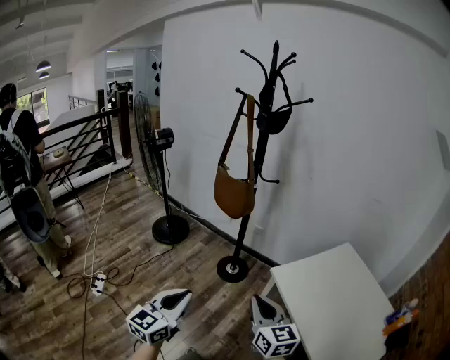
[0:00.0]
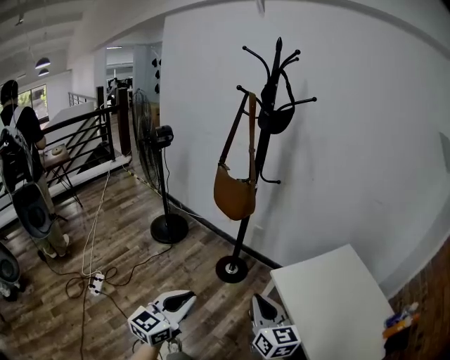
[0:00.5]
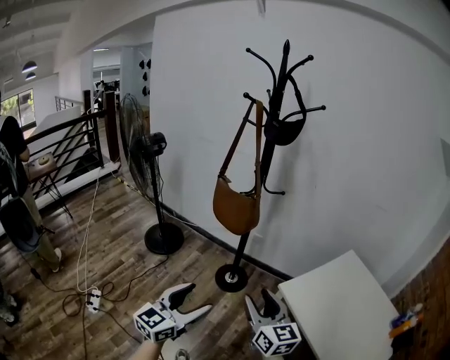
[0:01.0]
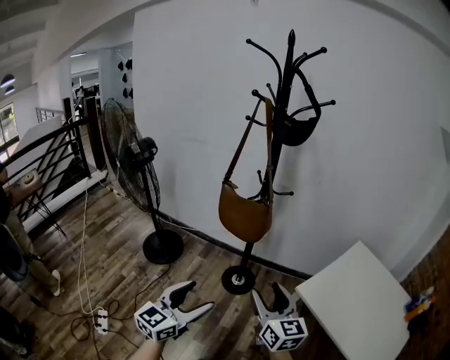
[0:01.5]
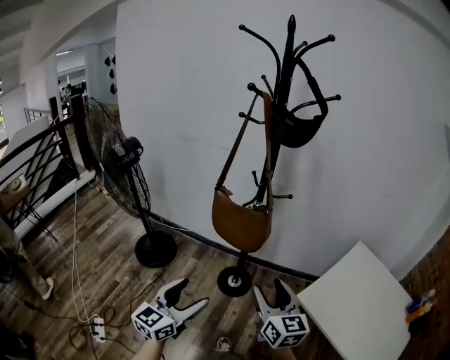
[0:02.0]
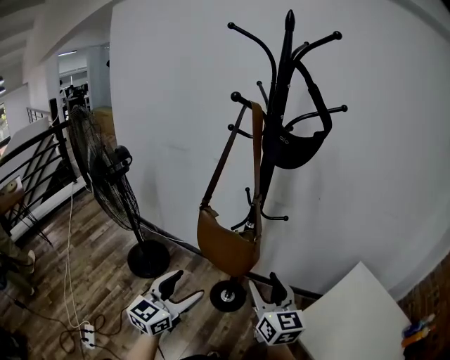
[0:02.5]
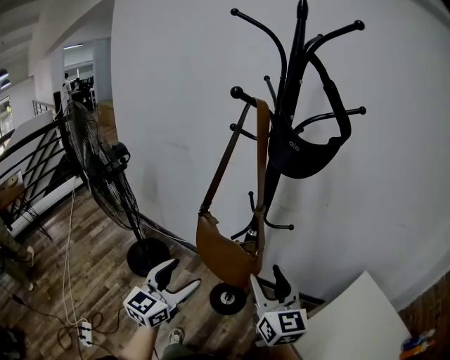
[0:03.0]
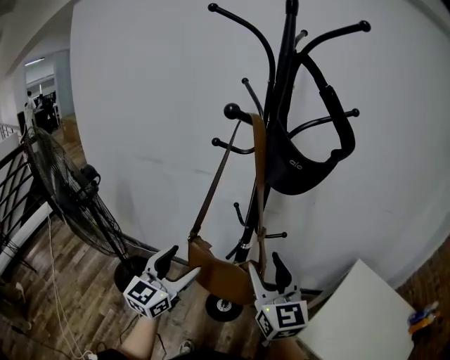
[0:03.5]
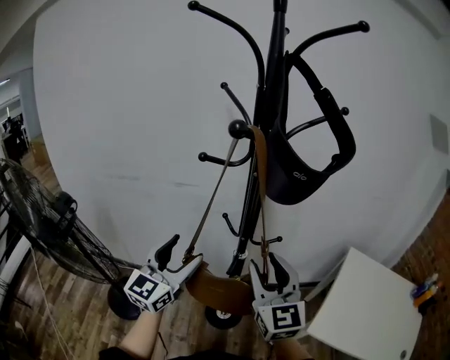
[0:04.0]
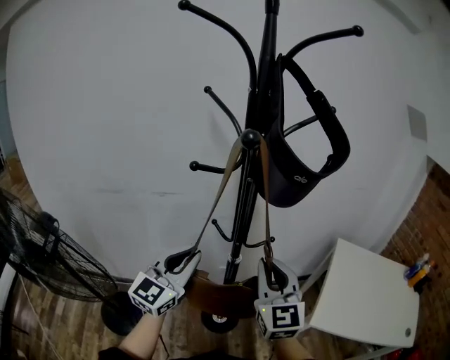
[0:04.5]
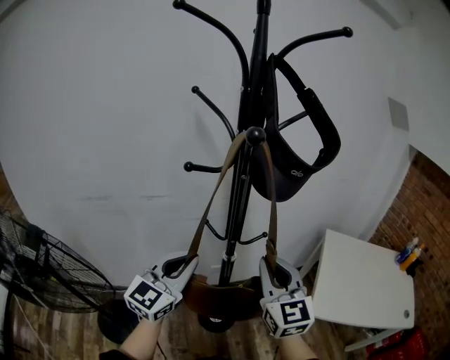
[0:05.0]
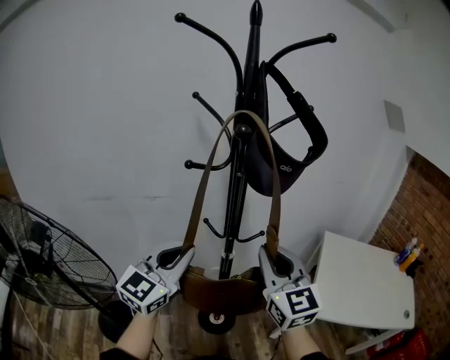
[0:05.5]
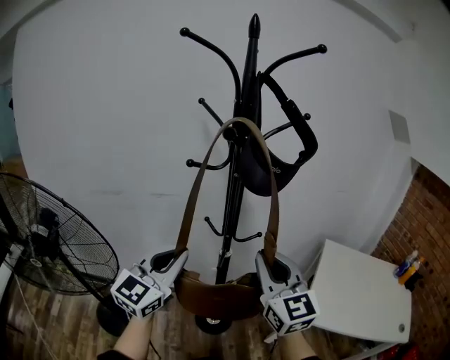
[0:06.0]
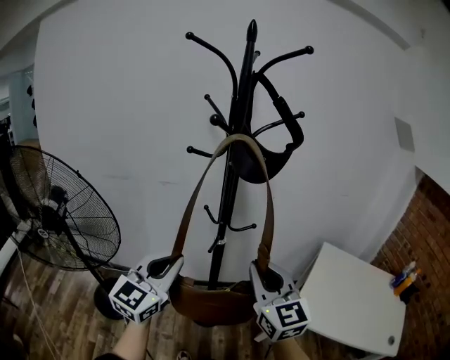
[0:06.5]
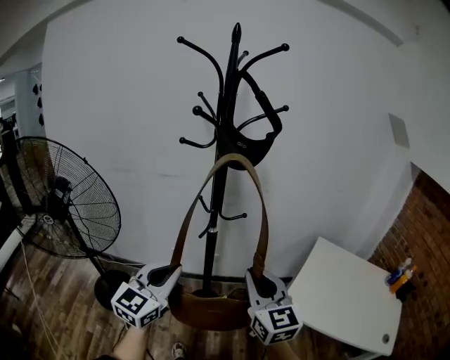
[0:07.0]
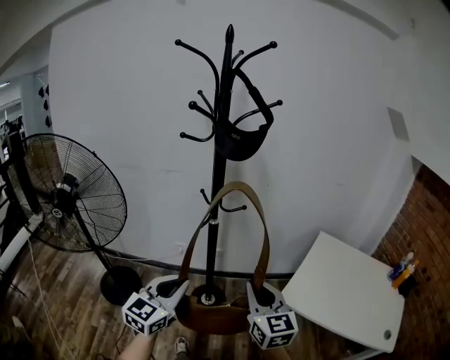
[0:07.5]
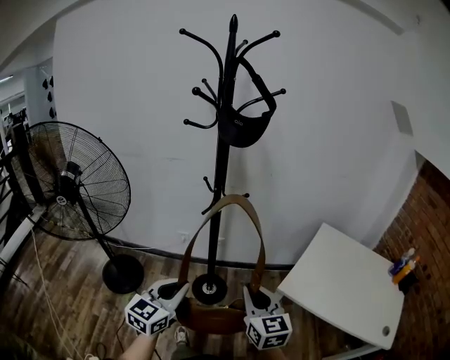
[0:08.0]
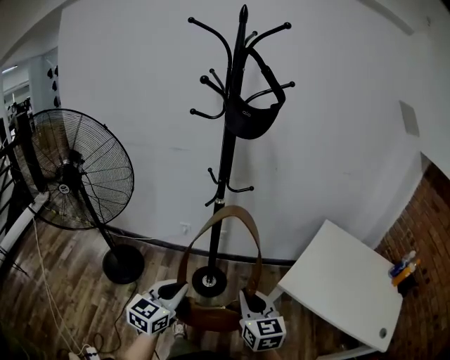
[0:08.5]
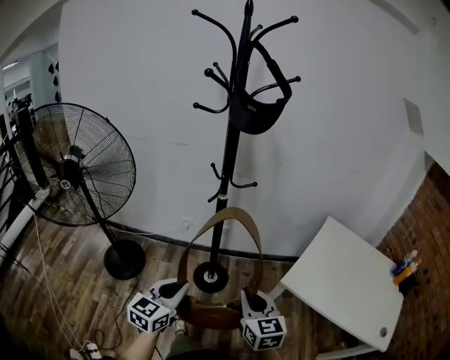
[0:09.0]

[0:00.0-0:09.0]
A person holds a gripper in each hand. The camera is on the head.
0:00.0 to 0:02.0: The grippers both shift forward and to the left by approximately 30 cm. The left gripper opens. Meanwhile the right gripper opens its fingers.
0:02.0 to 0:04.5: The right gripper ends up some 30 cm from where it was, changes its angle by approximately 40 degrees, and closes its fingers; the left gripper changes place by approximately 40 cm, turns by approximately 30 degrees, and closes its fingers.
0:04.5 to 0:07.0: The two grippers go approximately 20 cm backward and to the right.
0:07.0 to 0:09.0: The grippers both shift downward and backward by some 20 cm.

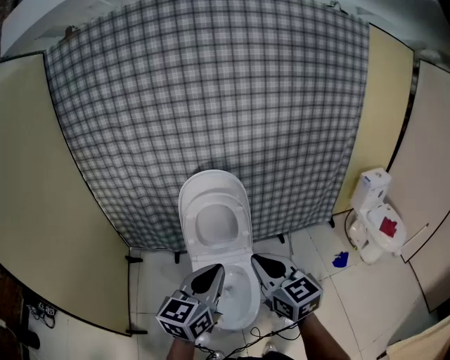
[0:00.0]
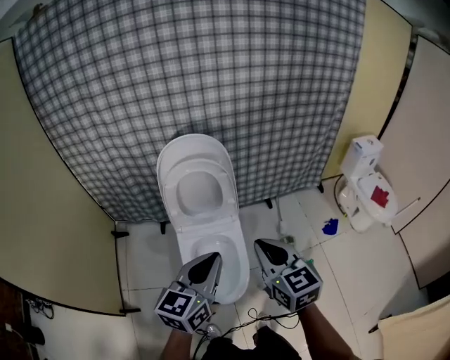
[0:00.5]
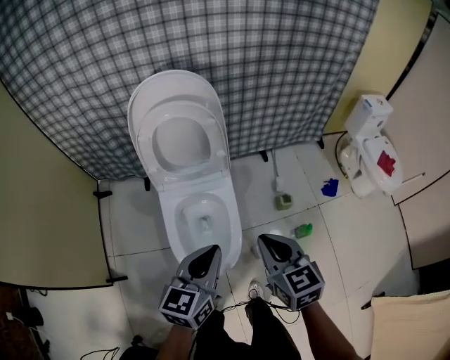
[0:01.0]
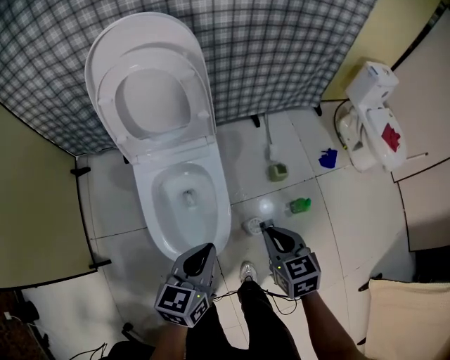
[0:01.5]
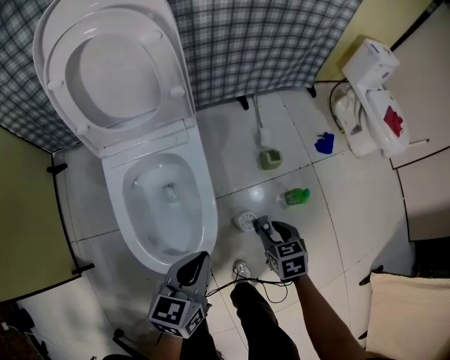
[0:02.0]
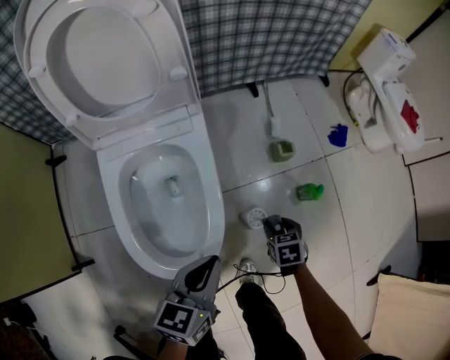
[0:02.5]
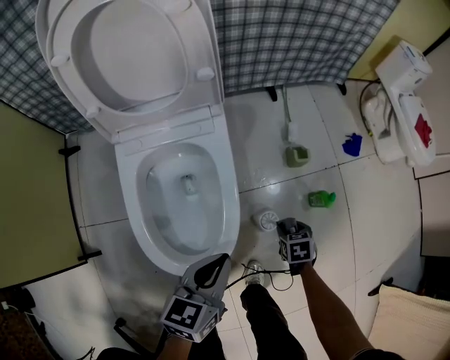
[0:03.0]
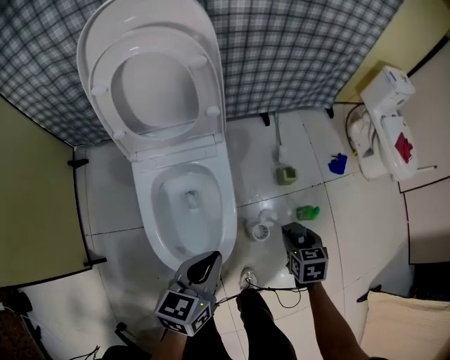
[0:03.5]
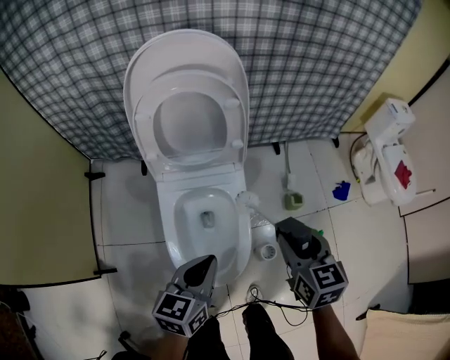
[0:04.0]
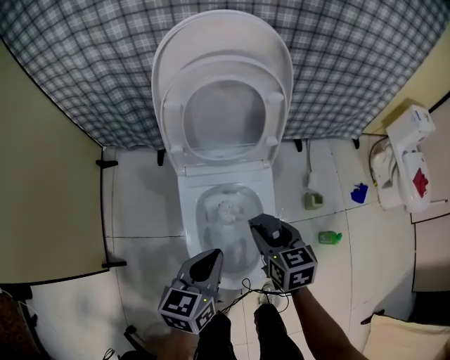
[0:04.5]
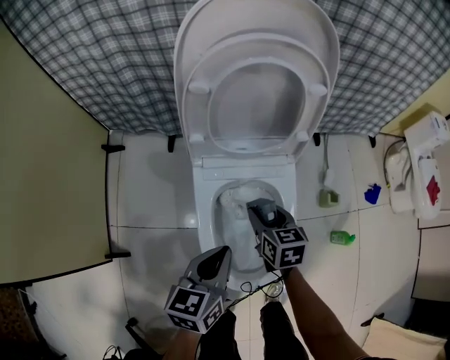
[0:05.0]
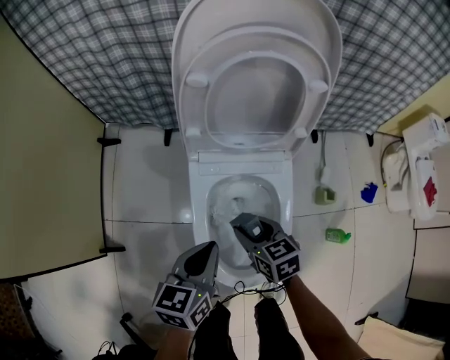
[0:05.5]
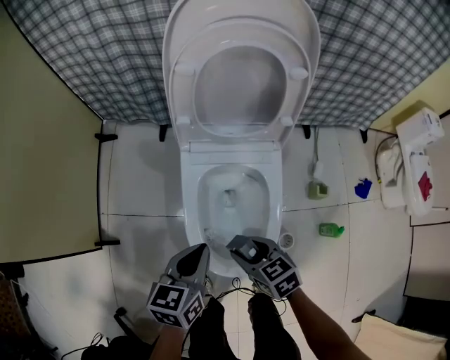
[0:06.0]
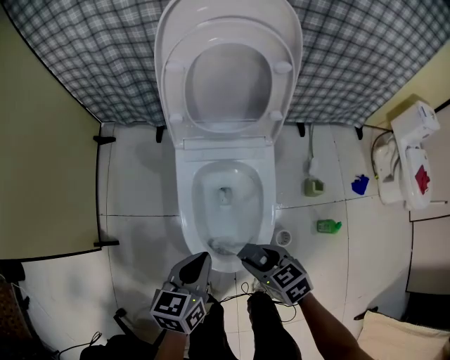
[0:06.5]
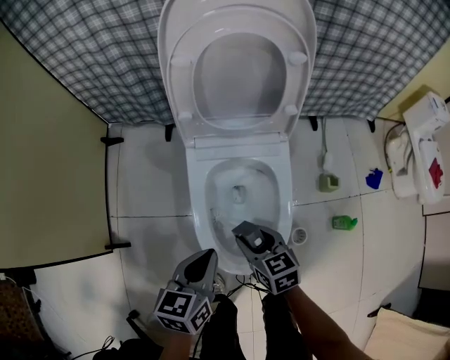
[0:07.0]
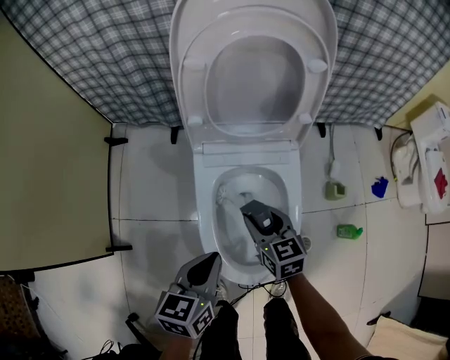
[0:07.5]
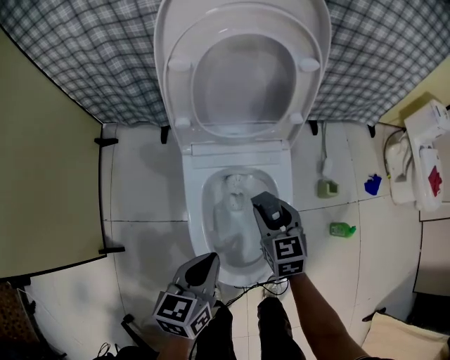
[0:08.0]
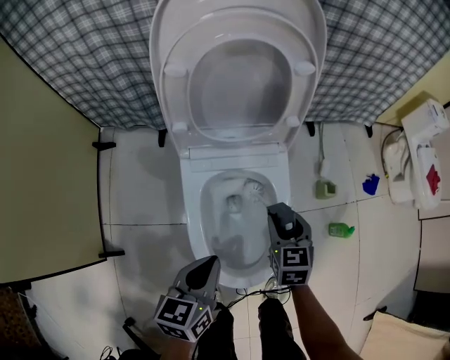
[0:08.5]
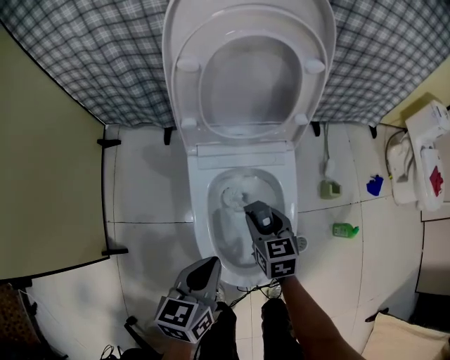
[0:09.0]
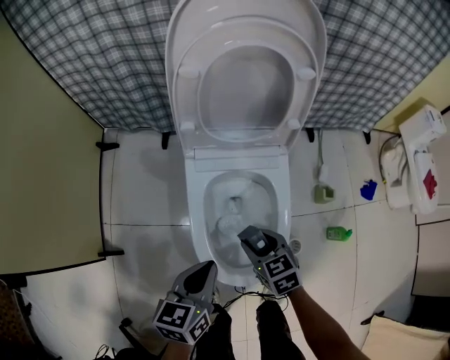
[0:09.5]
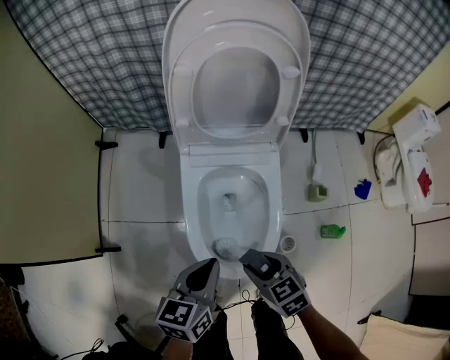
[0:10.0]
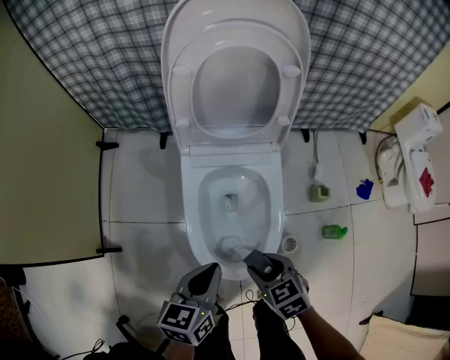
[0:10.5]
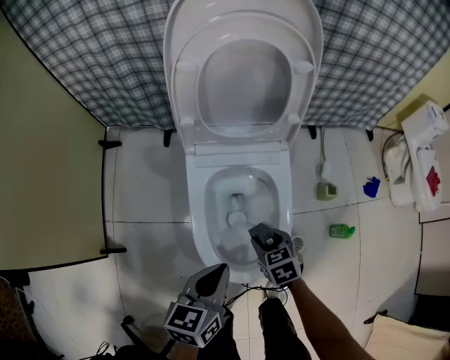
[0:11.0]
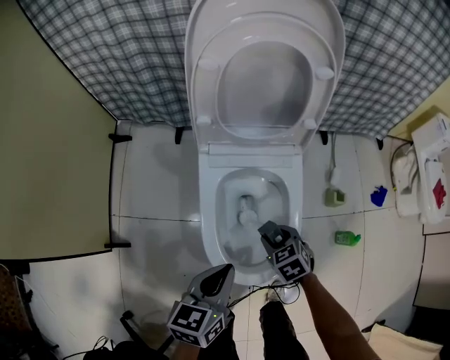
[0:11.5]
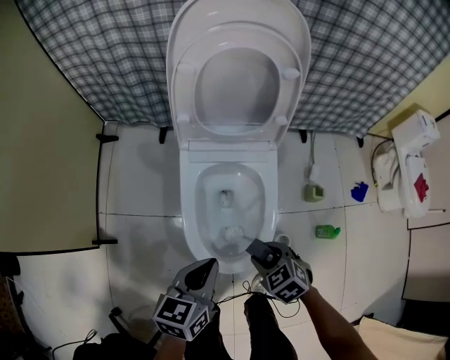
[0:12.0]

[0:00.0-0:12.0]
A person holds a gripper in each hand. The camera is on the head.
0:00.0 to 0:02.0: The grippers both shift downward by about 50 cm. The right gripper tilts its fingers some 50 degrees downward, and opens its fingers, while the left gripper rotates about 30 degrees.
0:02.0 to 0:04.0: The right gripper moves upward and to the left, about 30 cm, and rotates roughly 20 degrees. Meanwhile the left gripper goes about 15 cm upward and to the left.
0:04.0 to 0:06.0: The right gripper changes place by about 30 cm, and changes its angle by approximately 40 degrees; the left gripper moves some 15 cm.
0:06.0 to 0:08.0: The right gripper is displaced forward and to the right by some 15 cm, and swivels roughly 30 degrees.
0:08.0 to 0:10.0: The left gripper shifts by roughly 5 cm. The right gripper is displaced backward by approximately 20 cm, and rotates about 30 degrees.
0:10.0 to 0:12.0: The right gripper reaches approximately 10 cm downward, then returns.

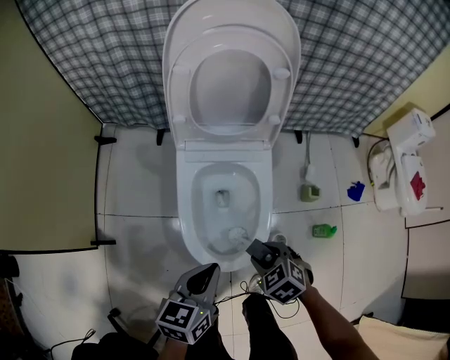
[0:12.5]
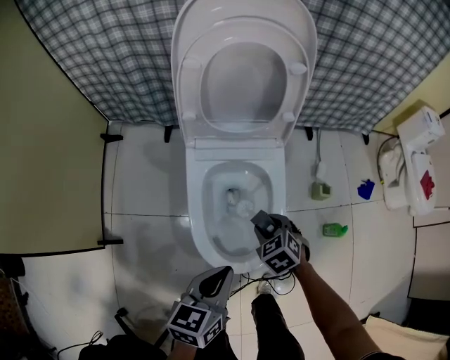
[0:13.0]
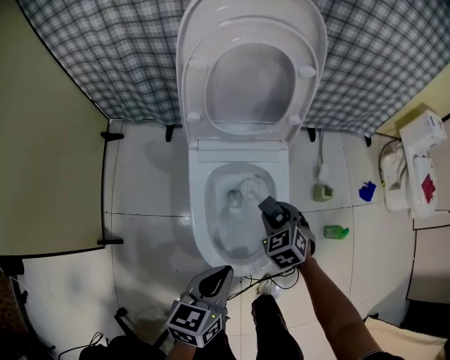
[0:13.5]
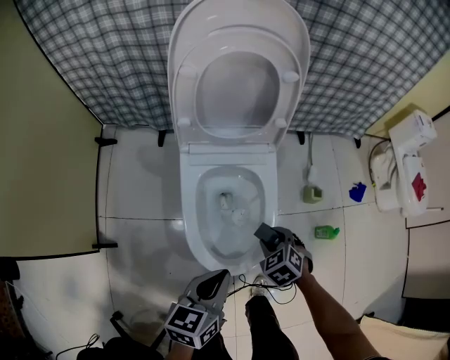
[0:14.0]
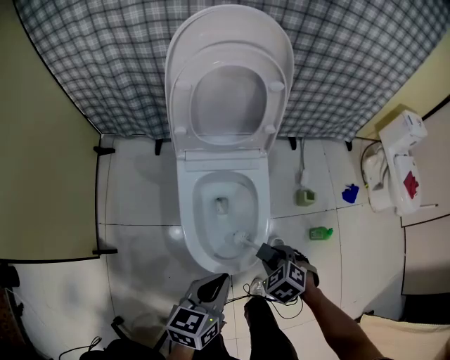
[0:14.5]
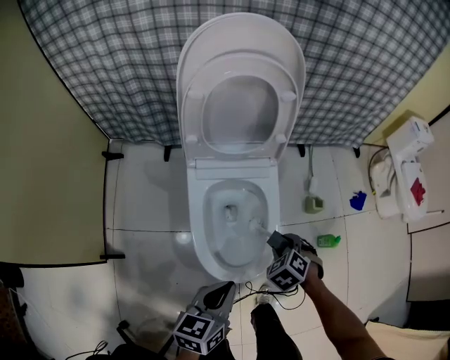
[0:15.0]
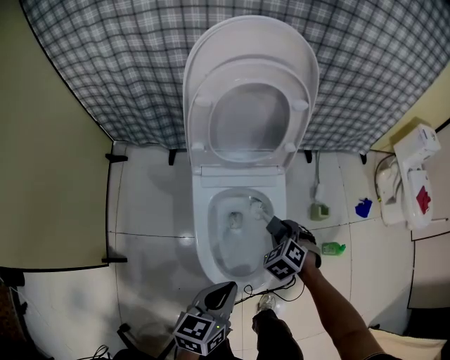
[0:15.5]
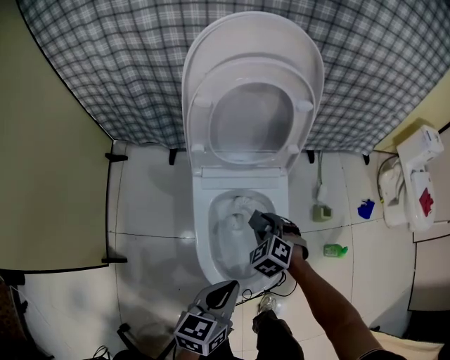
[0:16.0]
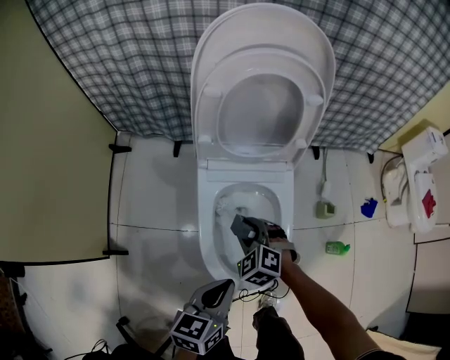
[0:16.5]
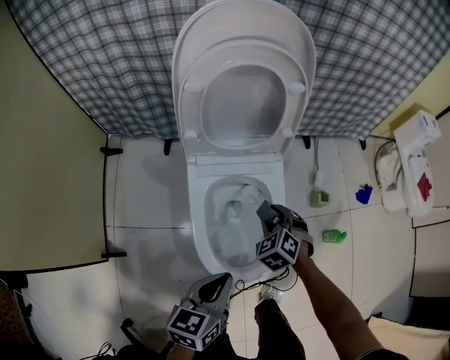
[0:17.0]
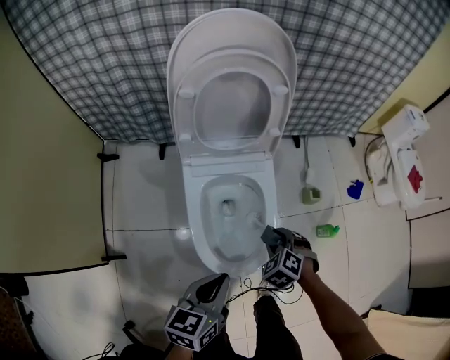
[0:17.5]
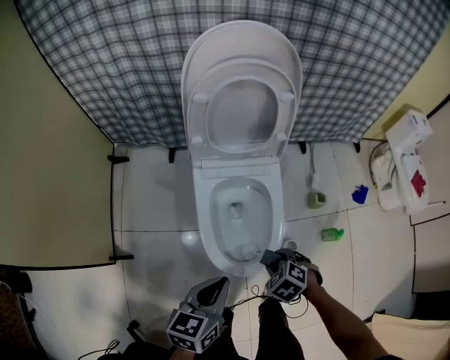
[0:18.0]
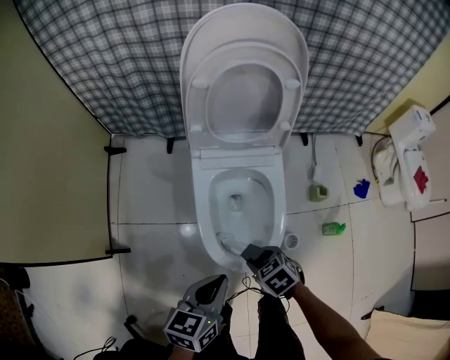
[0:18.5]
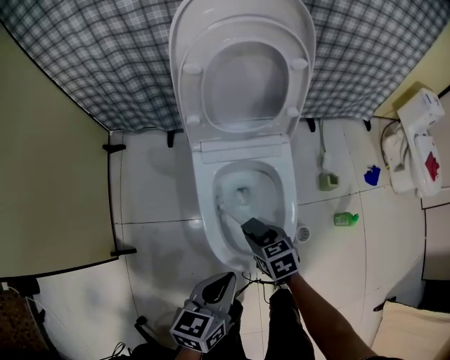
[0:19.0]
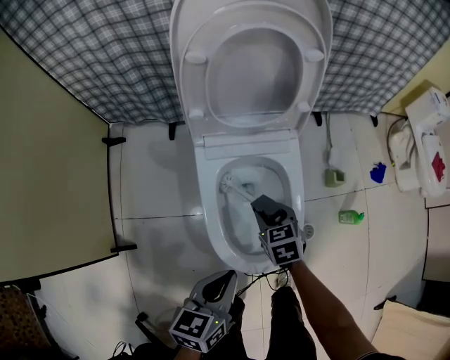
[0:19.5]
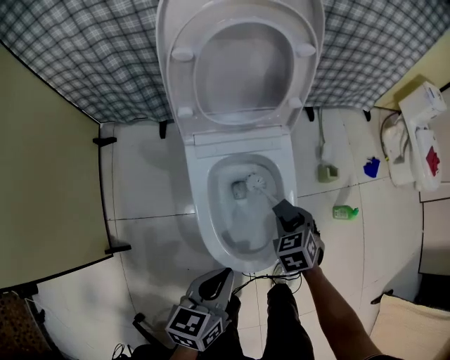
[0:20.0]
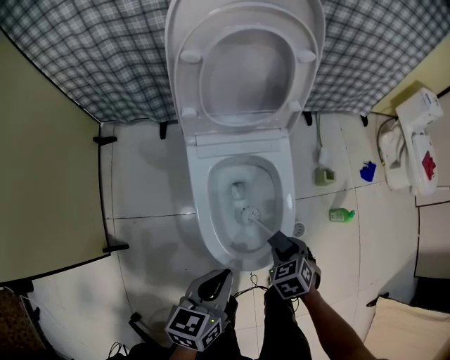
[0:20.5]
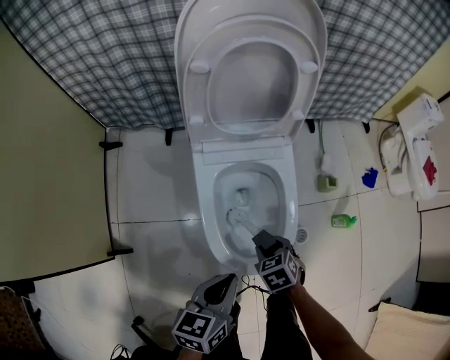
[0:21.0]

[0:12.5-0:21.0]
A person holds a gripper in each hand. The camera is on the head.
0:12.5 to 0:14.5: The right gripper goes forward and returns, roughly 15 cm each way.
0:14.5 to 0:16.5: The left gripper changes place by some 5 cm, while the right gripper shifts about 20 cm to the left and forward, and swivels about 30 degrees.
0:16.5 to 0:19.0: The right gripper rolls clockwise, seen from behind, by approximately 50 degrees.
0:19.0 to 0:21.0: The right gripper goes forward and returns, about 5 cm each way.
